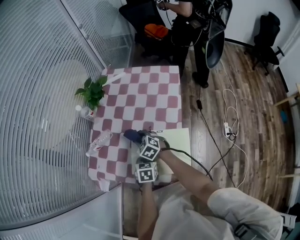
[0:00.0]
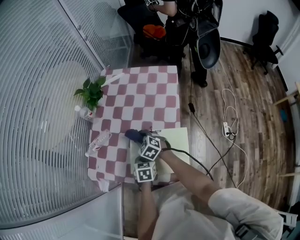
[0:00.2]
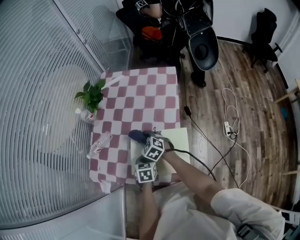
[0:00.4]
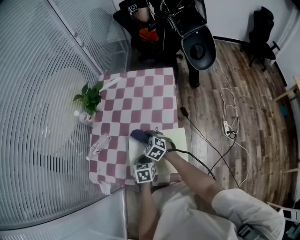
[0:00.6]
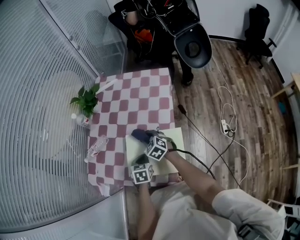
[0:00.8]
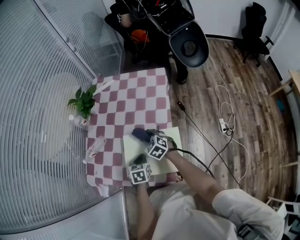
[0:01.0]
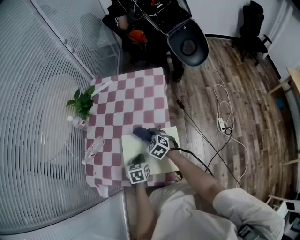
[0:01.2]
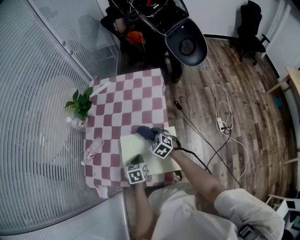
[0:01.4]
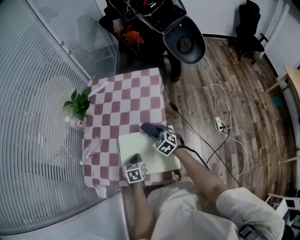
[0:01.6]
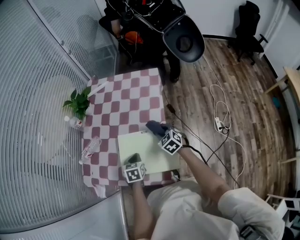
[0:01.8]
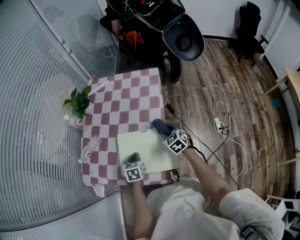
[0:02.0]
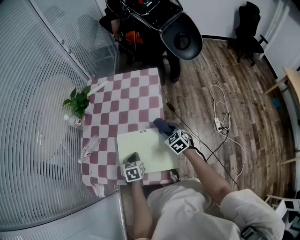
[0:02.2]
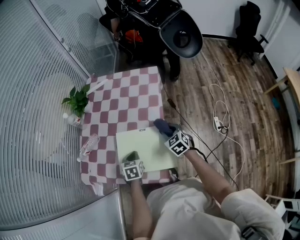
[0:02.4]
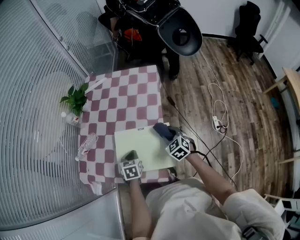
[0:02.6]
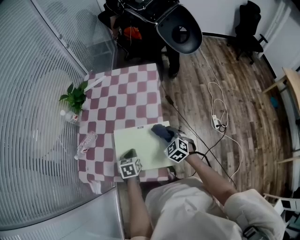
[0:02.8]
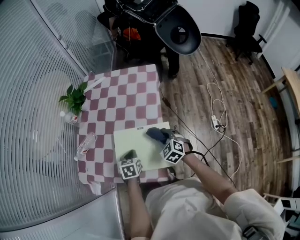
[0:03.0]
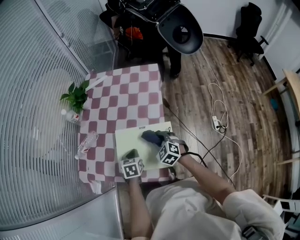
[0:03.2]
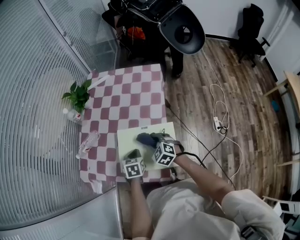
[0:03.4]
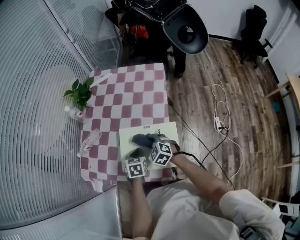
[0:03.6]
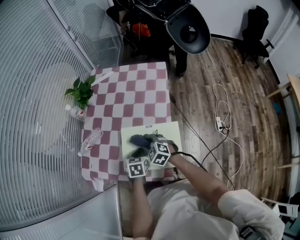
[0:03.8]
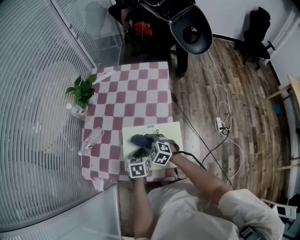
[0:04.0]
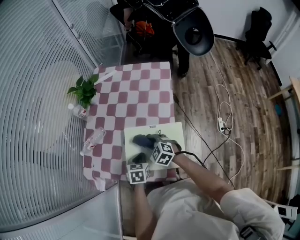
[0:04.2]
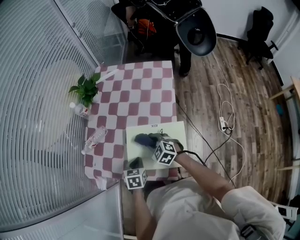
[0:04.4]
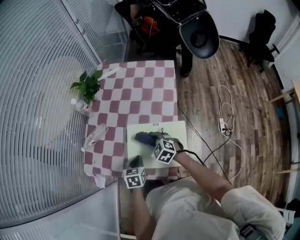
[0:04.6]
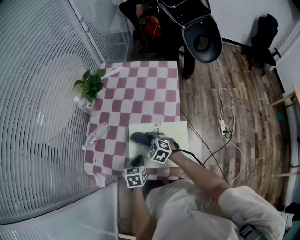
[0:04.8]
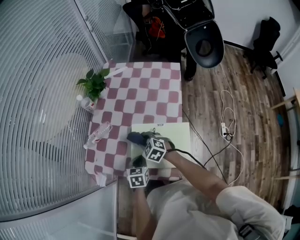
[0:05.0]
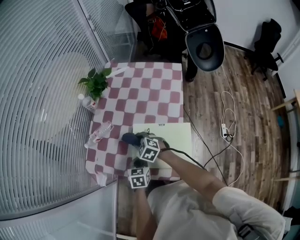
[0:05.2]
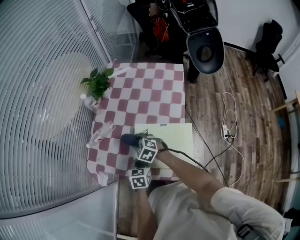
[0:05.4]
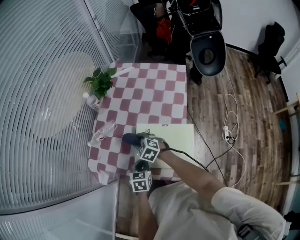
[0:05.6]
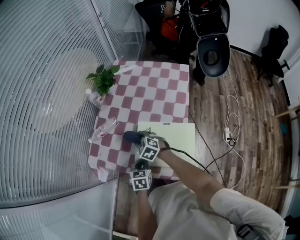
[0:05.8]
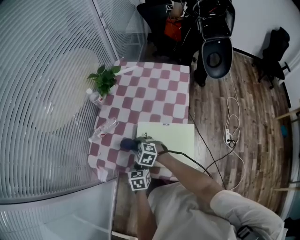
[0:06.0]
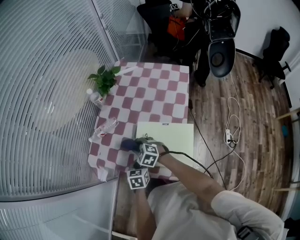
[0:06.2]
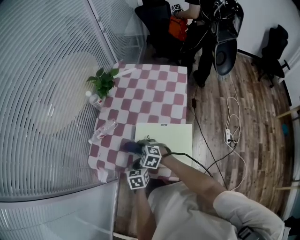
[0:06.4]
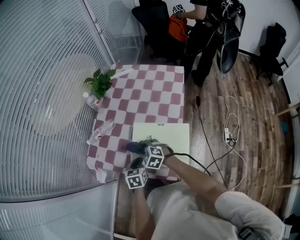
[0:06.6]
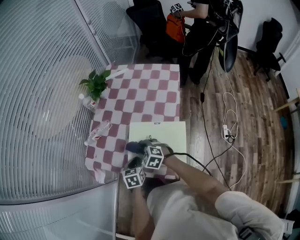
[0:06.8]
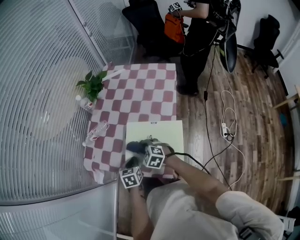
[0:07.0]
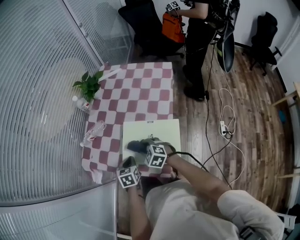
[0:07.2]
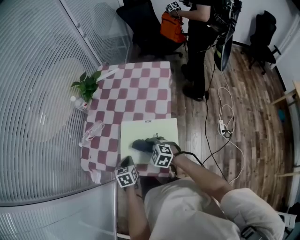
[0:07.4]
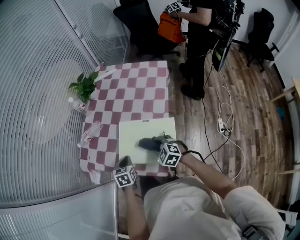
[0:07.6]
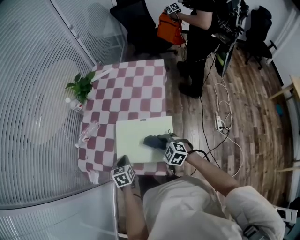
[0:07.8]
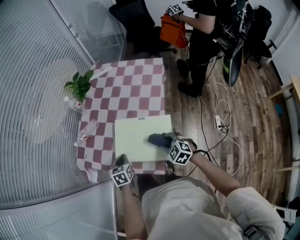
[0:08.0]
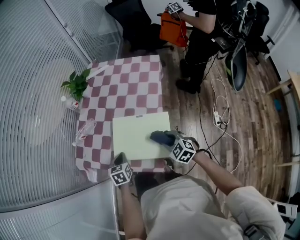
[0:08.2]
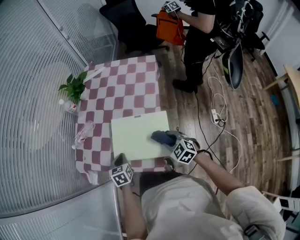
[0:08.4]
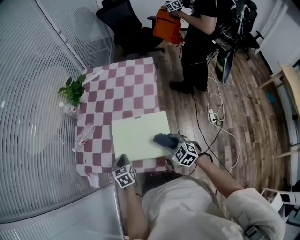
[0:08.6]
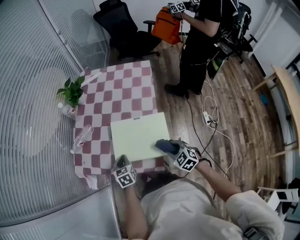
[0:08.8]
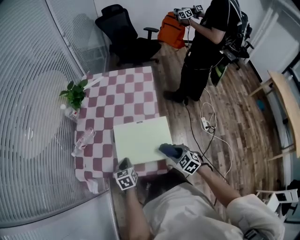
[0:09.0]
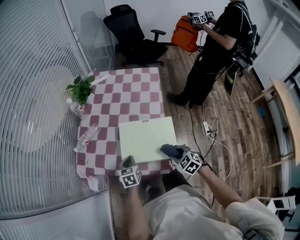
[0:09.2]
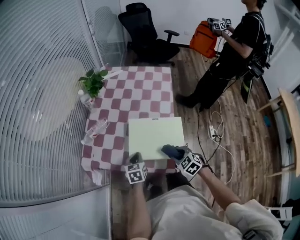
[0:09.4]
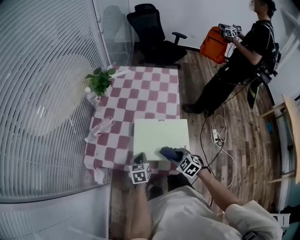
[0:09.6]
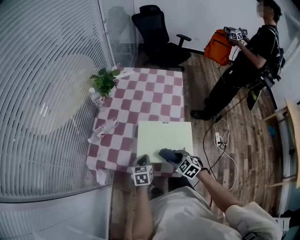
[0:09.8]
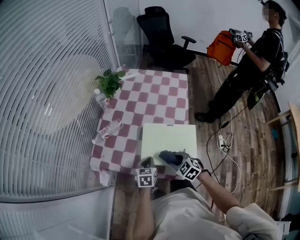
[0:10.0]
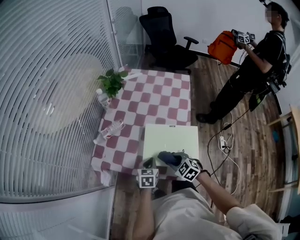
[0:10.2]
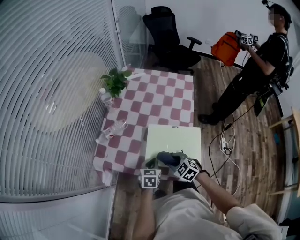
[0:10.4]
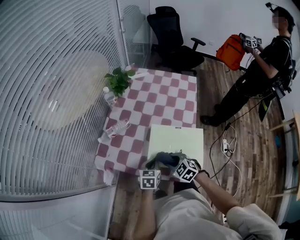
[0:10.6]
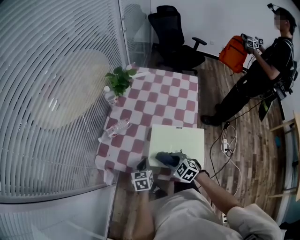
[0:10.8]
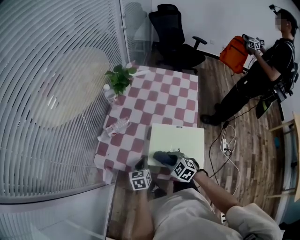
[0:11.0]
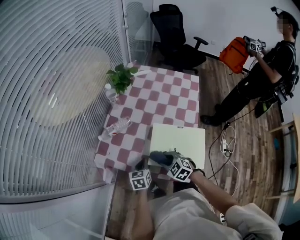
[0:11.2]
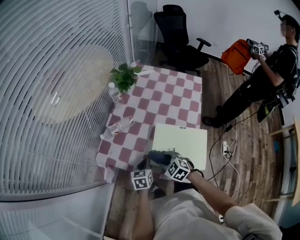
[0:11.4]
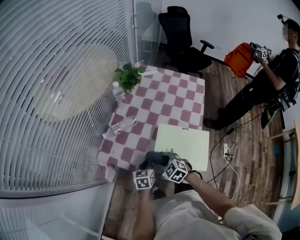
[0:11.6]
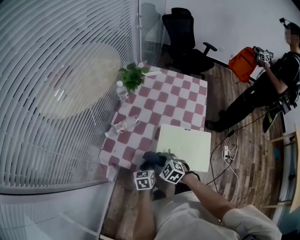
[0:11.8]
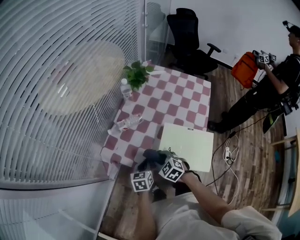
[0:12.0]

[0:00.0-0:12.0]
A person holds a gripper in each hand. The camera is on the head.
0.0 to 1.6 s: The right gripper travels to the right by some 15 cm.
1.6 to 3.0 s: The right gripper moves backward, roughly 5 cm.
3.0 to 4.4 s: The right gripper goes some 15 cm to the left. Meanwhile the left gripper travels to the left by about 5 cm.
4.4 to 6.0 s: The right gripper moves to the left, roughly 15 cm.
6.0 to 7.6 s: The right gripper is displaced to the right and backward by approximately 20 cm.
7.6 to 9.0 s: The right gripper is displaced backward and to the right by some 15 cm, and rotates approximately 20 degrees.
9.0 to 10.4 s: The right gripper heads to the left, covering roughly 15 cm.
10.4 to 12.0 s: The left gripper heads to the left, covering approximately 10 cm, and rotates roughly 20 degrees; the right gripper moves to the left and forward, about 15 cm.

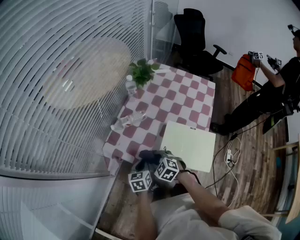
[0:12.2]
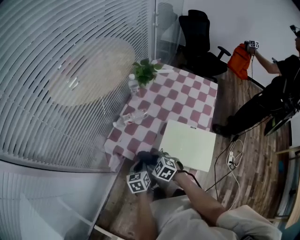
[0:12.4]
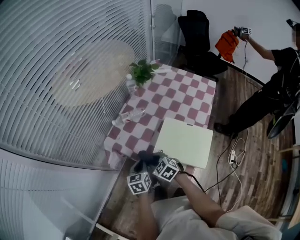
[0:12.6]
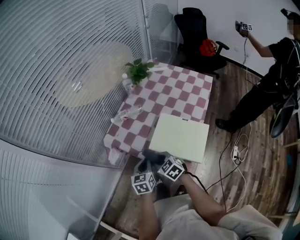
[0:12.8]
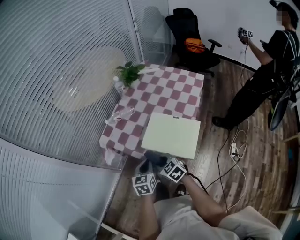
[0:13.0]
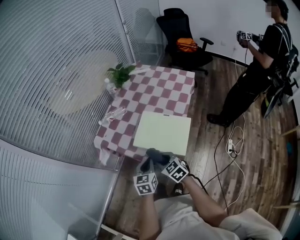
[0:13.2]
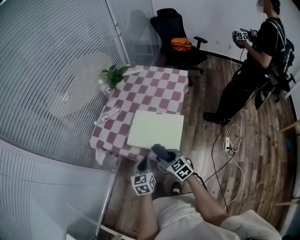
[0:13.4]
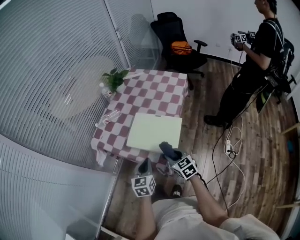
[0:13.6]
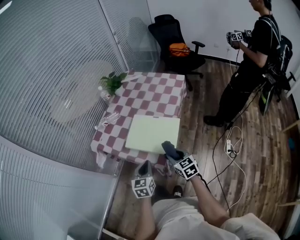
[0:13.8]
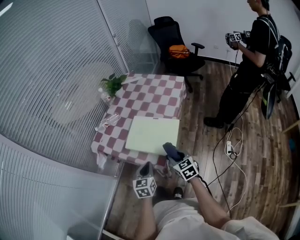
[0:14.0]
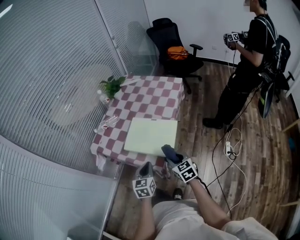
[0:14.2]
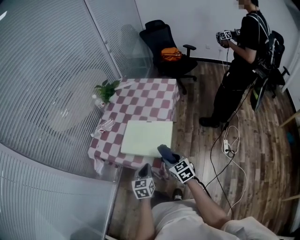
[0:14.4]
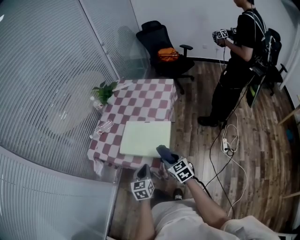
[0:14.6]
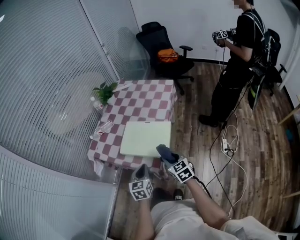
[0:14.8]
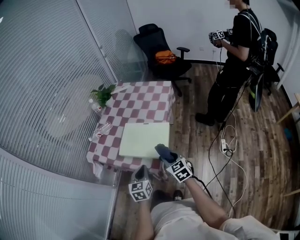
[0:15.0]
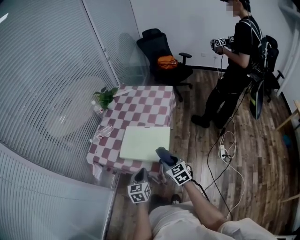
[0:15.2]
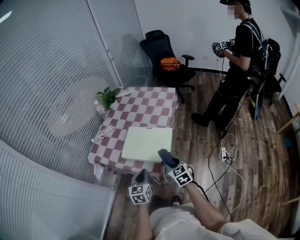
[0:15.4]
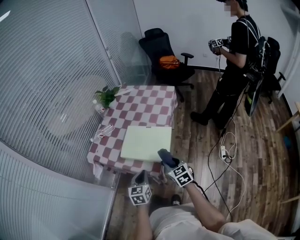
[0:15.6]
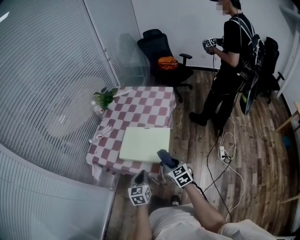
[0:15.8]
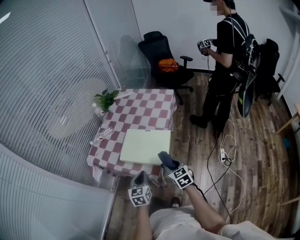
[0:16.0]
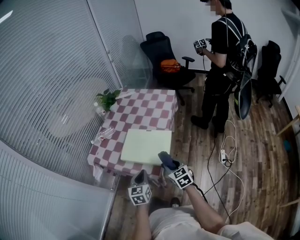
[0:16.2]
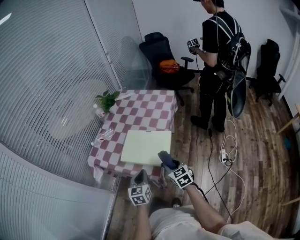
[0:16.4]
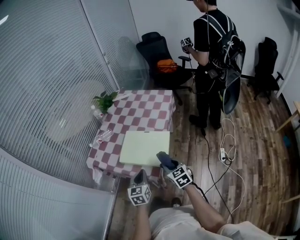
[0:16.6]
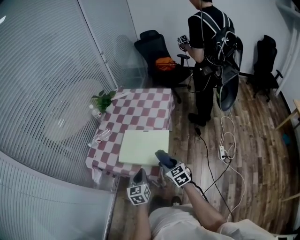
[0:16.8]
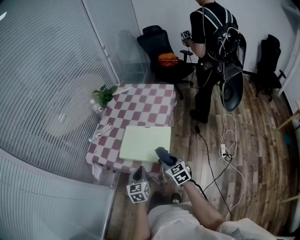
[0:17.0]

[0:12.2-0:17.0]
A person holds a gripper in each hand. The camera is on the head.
12.2 to 13.8 s: The right gripper heads to the right and backward, covering roughly 35 cm, and rotates roughly 40 degrees. The left gripper moves backward, to the right and upward, some 30 cm.
13.8 to 17.0 s: There are only small adjustments of the grippers.

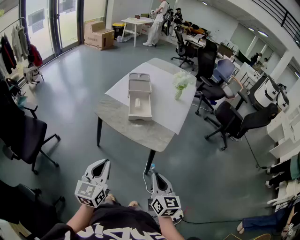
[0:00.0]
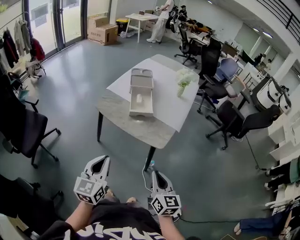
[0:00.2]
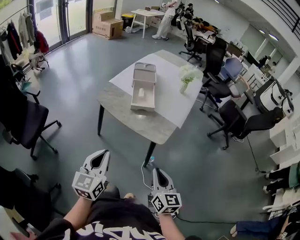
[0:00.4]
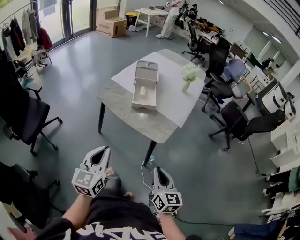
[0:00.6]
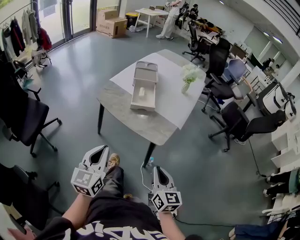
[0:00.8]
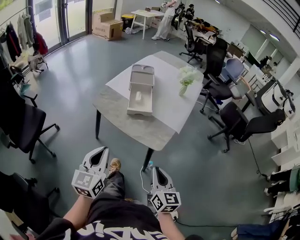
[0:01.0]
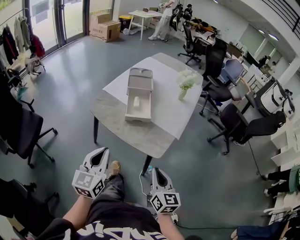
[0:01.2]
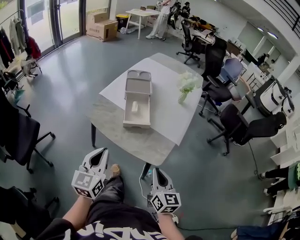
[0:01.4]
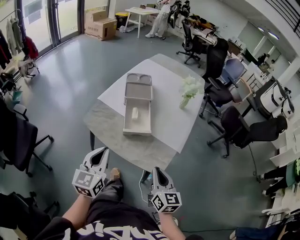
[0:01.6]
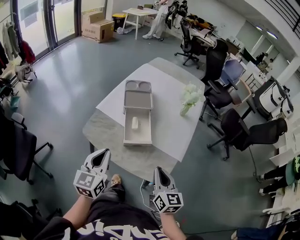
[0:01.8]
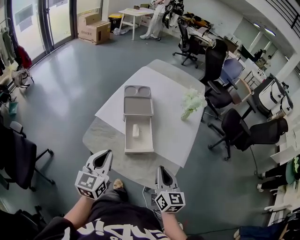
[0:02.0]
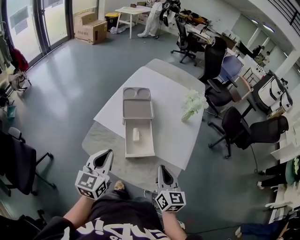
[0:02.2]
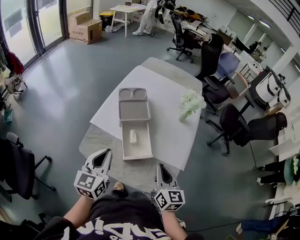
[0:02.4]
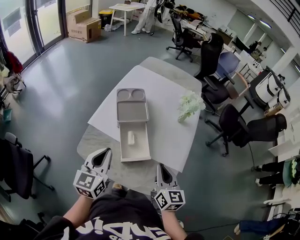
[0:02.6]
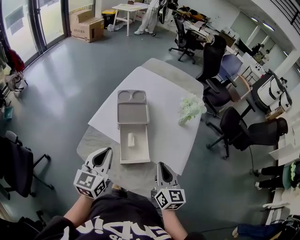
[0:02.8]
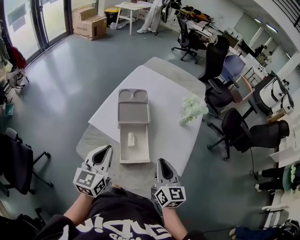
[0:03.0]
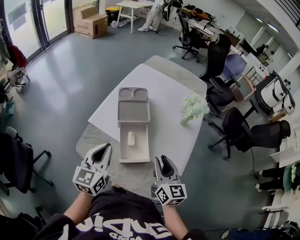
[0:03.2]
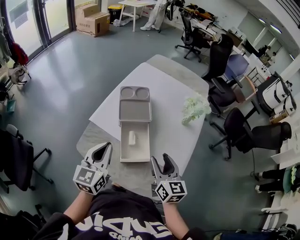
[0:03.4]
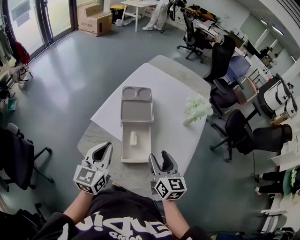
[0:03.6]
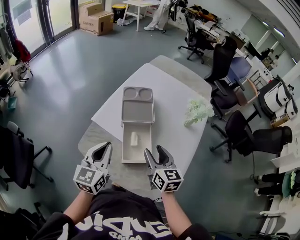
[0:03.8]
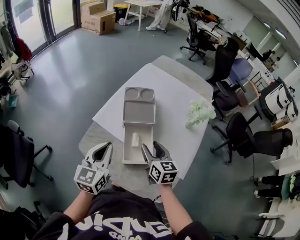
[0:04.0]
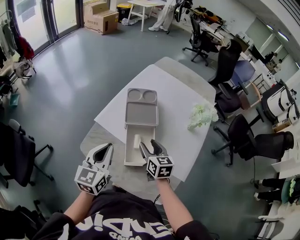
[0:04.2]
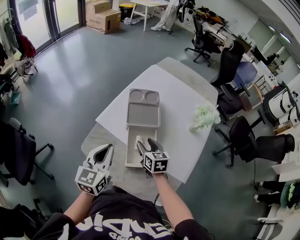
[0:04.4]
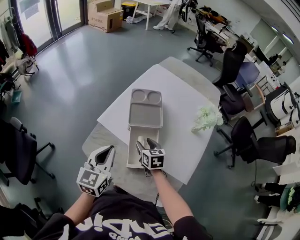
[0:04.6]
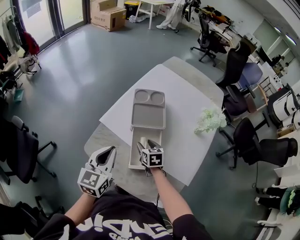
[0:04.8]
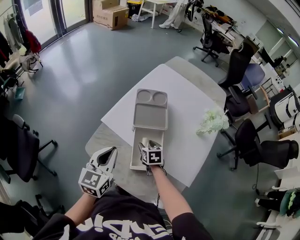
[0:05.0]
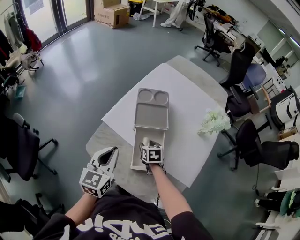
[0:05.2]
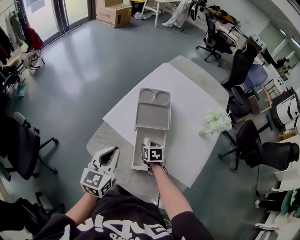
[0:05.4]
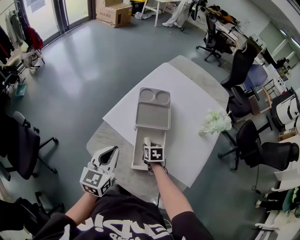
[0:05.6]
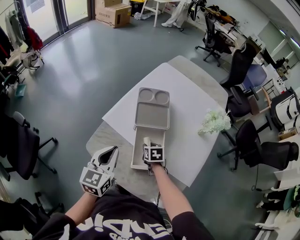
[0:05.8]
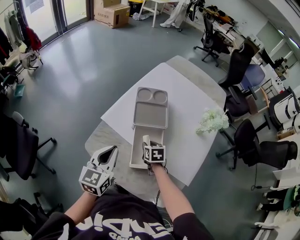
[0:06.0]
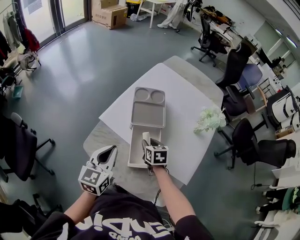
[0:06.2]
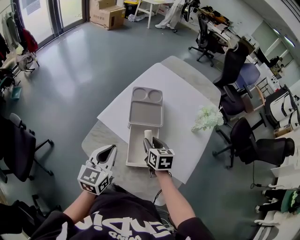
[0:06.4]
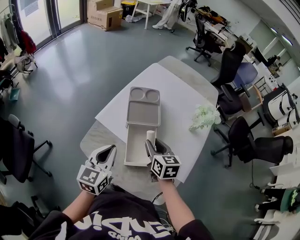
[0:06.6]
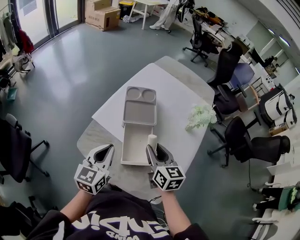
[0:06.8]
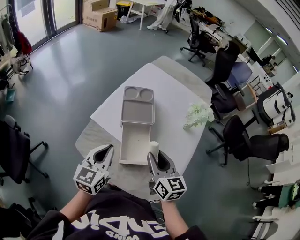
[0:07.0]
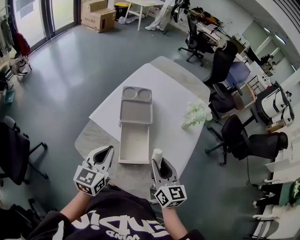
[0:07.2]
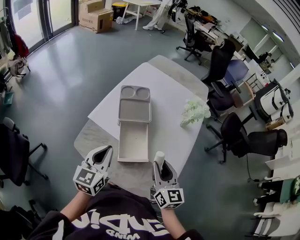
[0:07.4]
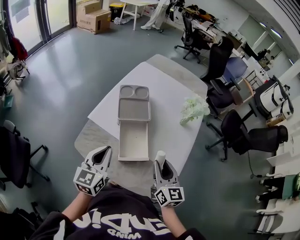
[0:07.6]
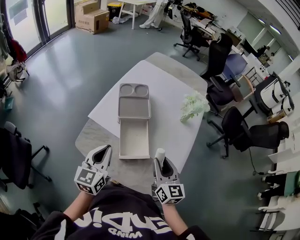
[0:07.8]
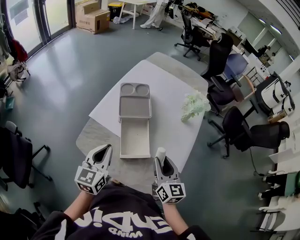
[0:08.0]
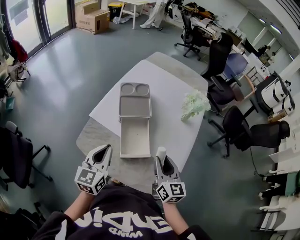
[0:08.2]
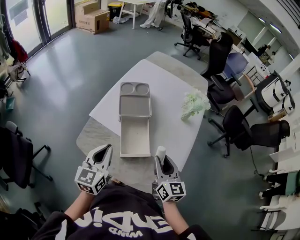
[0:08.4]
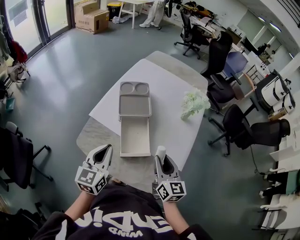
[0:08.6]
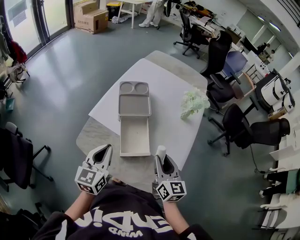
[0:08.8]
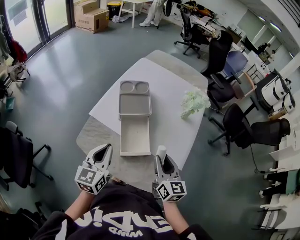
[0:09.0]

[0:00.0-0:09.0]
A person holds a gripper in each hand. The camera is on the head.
0.0 to 1.6 s: The grippers both shift forward by some 20 cm.
1.6 to 3.0 s: The two grippers go roughly 20 cm forward.
3.0 to 4.4 s: The right gripper travels forward, downward and to the left by about 20 cm, rotates some 30 degrees, and opens up.
4.4 to 6.0 s: The right gripper goes roughly 10 cm downward, and changes its angle by approximately 20 degrees.
6.0 to 7.6 s: The right gripper moves upward, backward and to the right, about 30 cm, and tilts its fingers approximately 40 degrees upward, while the left gripper moves approximately 5 cm.
7.6 to 9.0 s: Both grippers stay about where they are.
